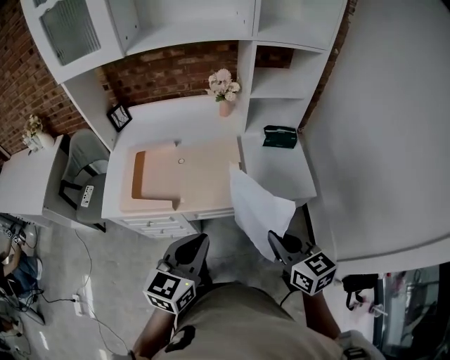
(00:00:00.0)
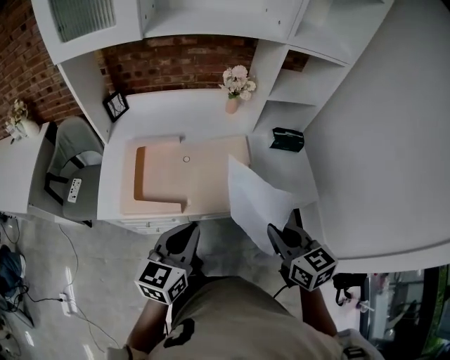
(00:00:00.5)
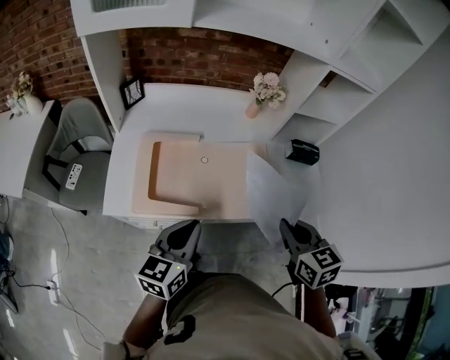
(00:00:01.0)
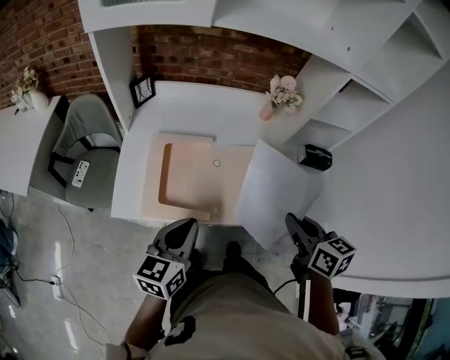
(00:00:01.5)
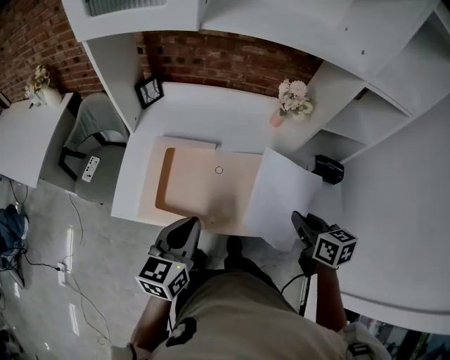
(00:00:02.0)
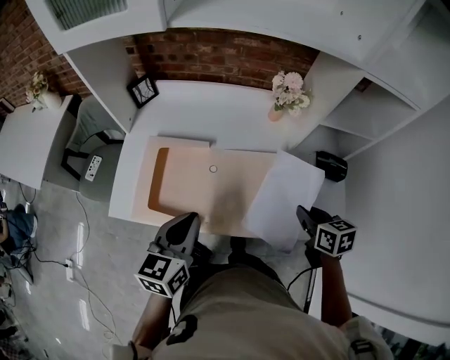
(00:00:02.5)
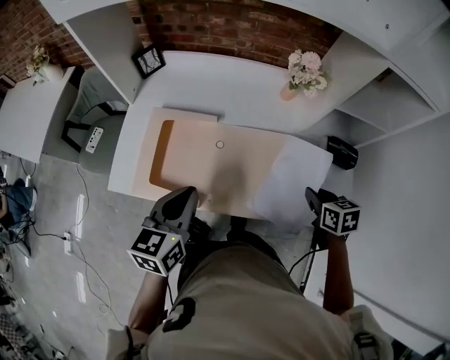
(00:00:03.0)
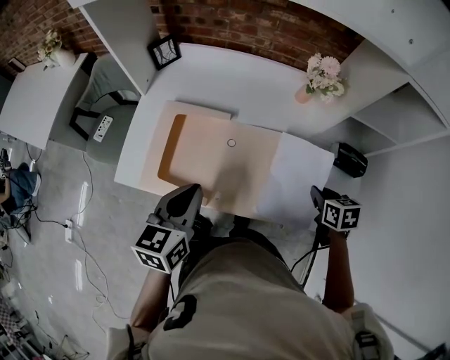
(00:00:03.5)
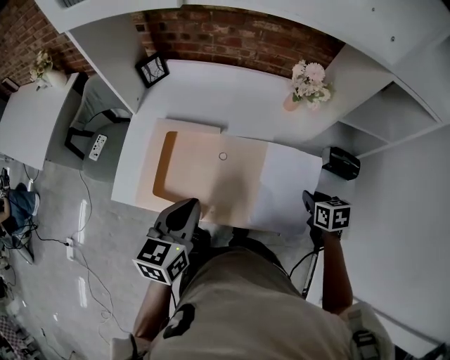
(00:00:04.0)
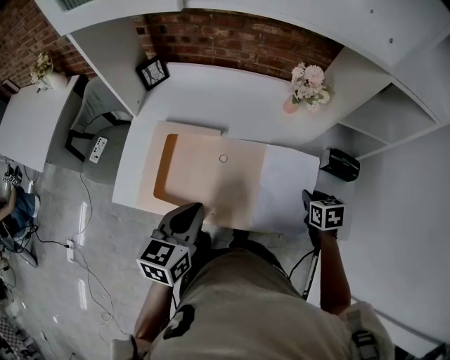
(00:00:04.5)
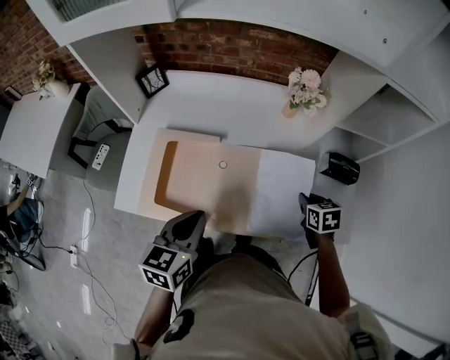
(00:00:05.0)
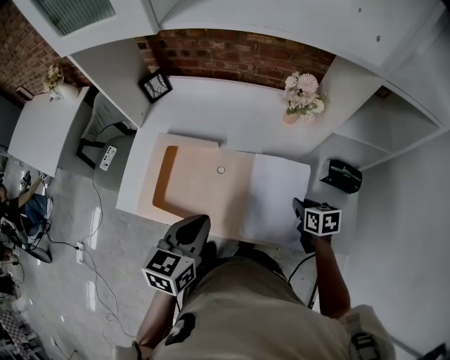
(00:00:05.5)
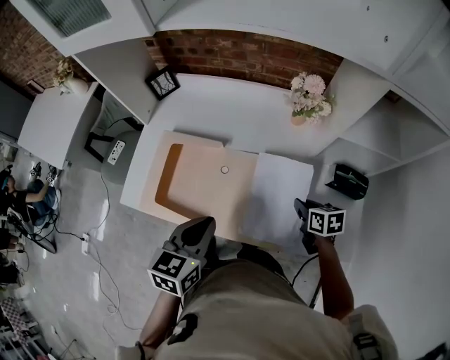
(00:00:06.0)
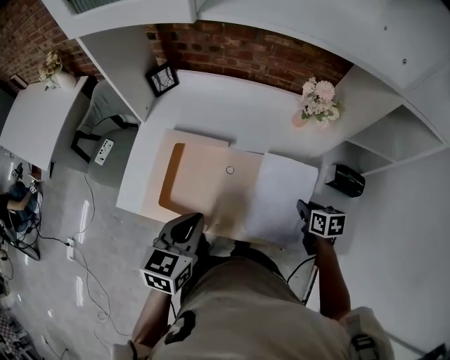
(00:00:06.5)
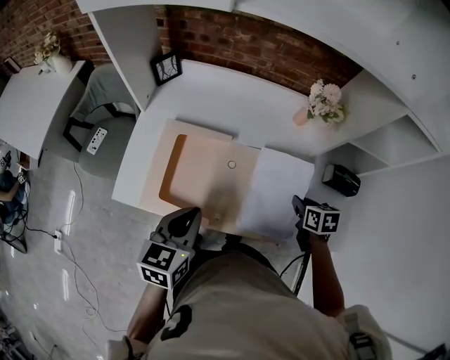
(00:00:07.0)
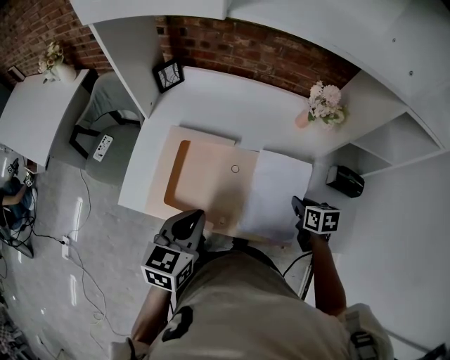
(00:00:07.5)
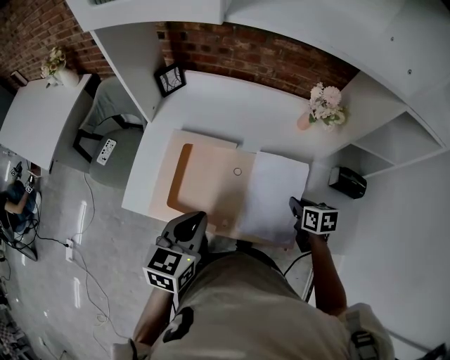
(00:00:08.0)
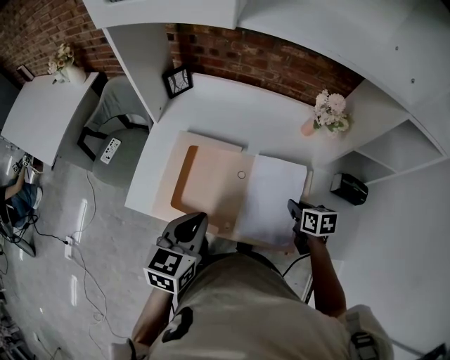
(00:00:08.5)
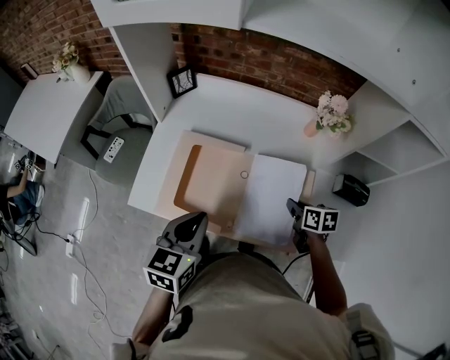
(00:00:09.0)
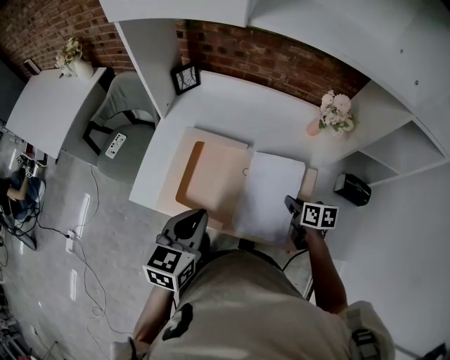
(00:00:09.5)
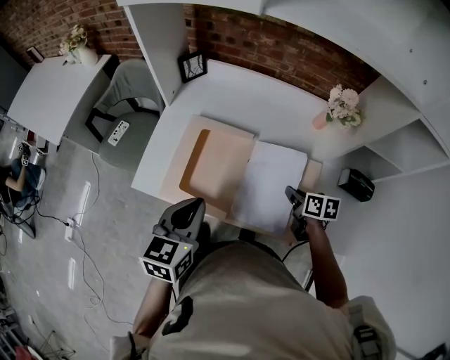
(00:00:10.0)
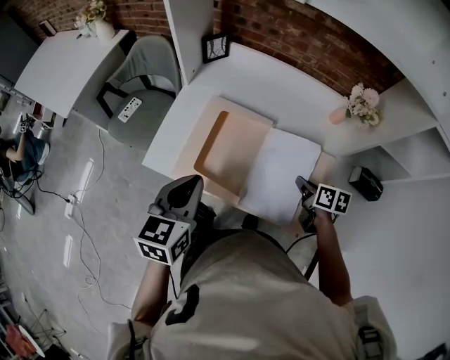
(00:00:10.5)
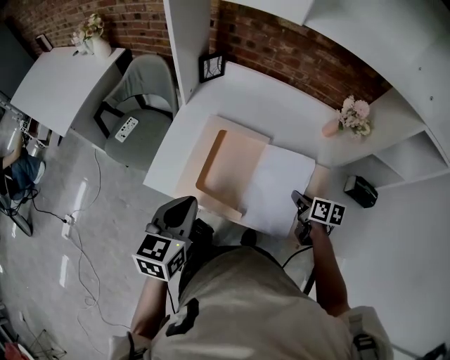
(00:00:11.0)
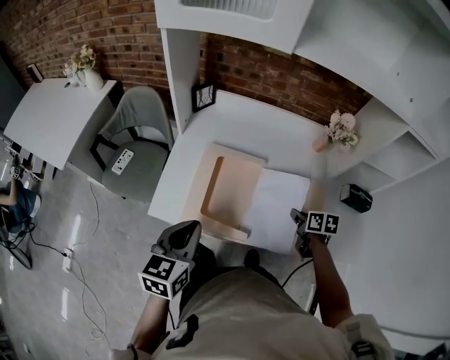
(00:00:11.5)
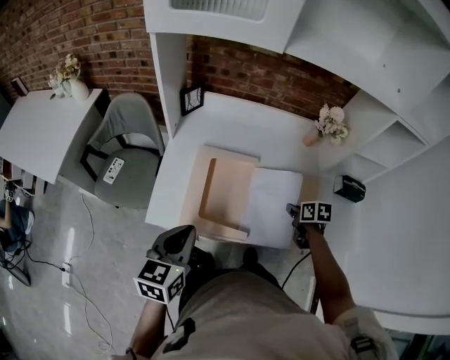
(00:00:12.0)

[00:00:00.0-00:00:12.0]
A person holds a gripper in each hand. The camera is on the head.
00:00:00.0 to 00:00:02.0: The right gripper goes approximately 20 cm forward. Meanwhile the left gripper shifts some 25 cm forward and to the left.
00:00:02.0 to 00:00:04.0: The right gripper is displaced downward, to the right and forward by approximately 15 cm, and changes its angle by roughly 20 degrees.
00:00:04.0 to 00:00:06.0: The left gripper shifts about 5 cm to the right. The right gripper ends up roughly 5 cm from where it was.
00:00:06.0 to 00:00:08.0: The two grippers go approximately 10 cm to the left.
00:00:08.0 to 00:00:10.0: The right gripper travels to the left by some 5 cm.
00:00:10.0 to 00:00:12.0: The left gripper is displaced to the left by approximately 10 cm.

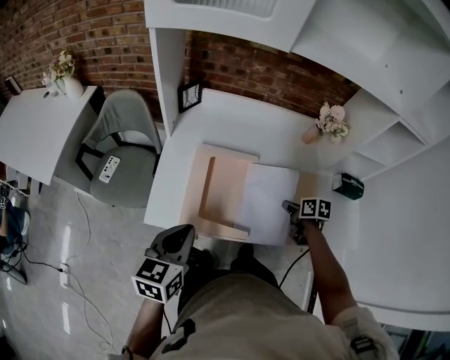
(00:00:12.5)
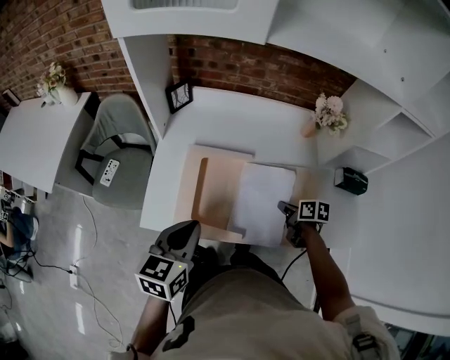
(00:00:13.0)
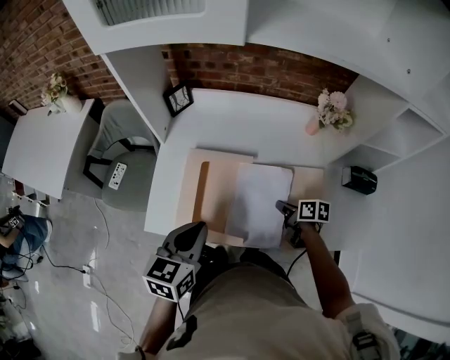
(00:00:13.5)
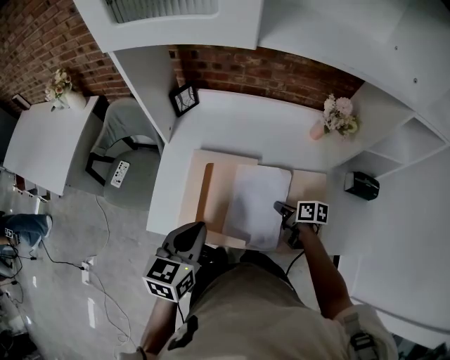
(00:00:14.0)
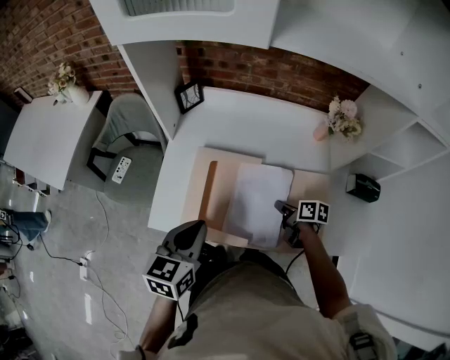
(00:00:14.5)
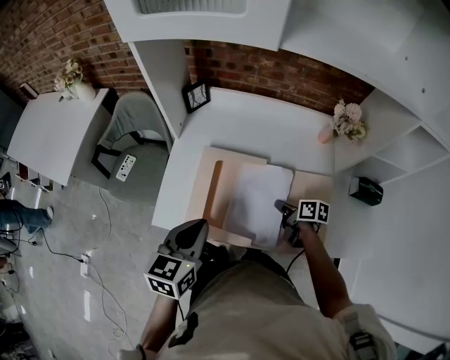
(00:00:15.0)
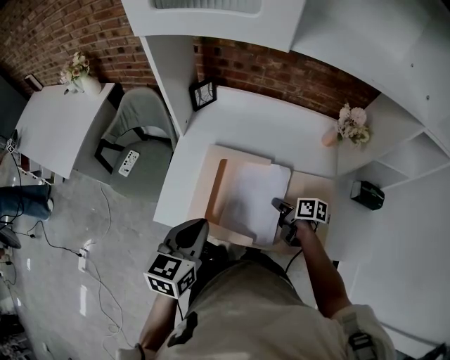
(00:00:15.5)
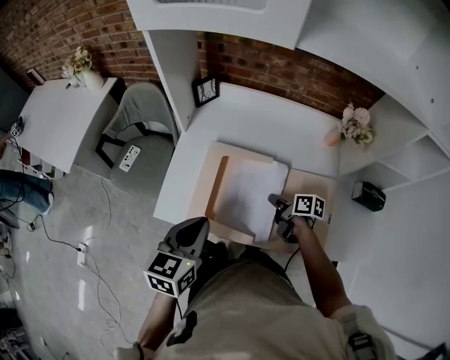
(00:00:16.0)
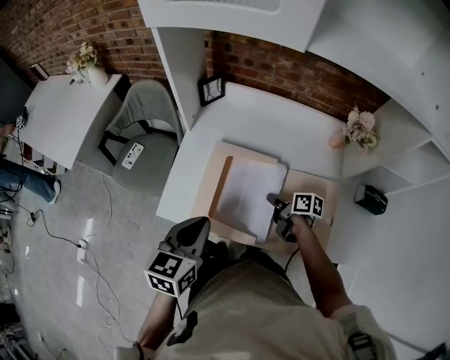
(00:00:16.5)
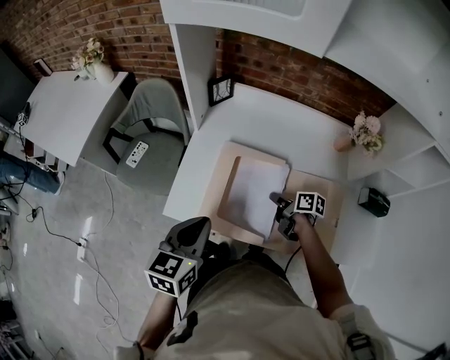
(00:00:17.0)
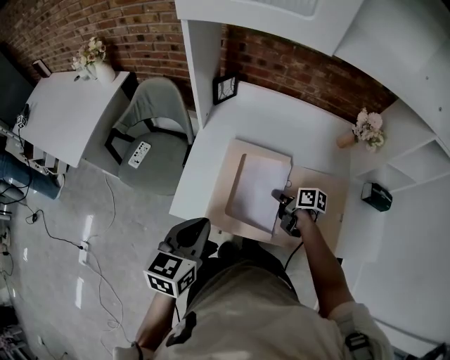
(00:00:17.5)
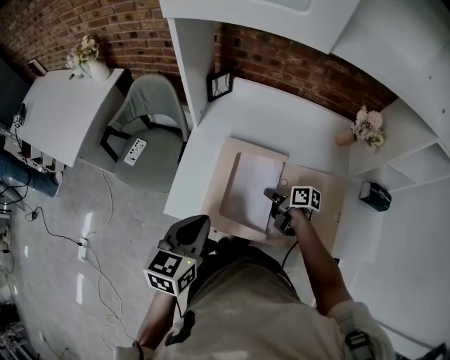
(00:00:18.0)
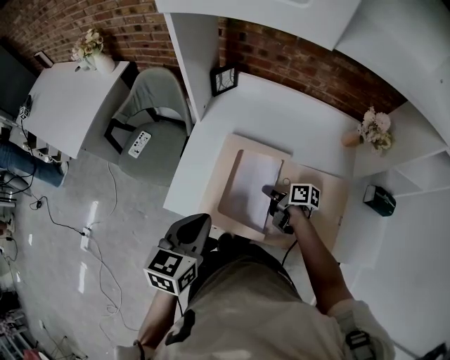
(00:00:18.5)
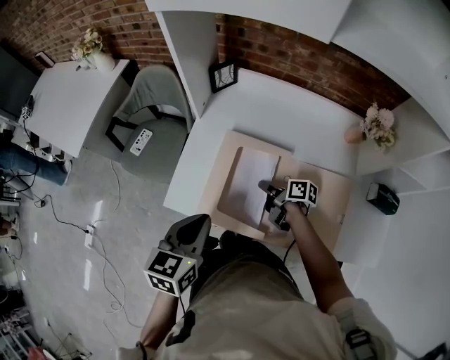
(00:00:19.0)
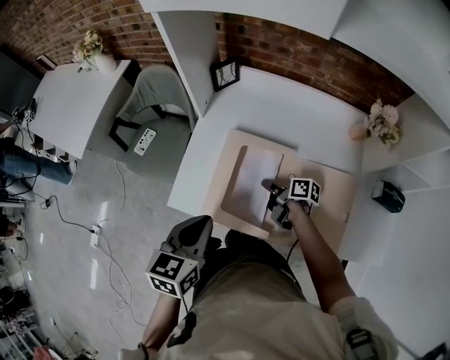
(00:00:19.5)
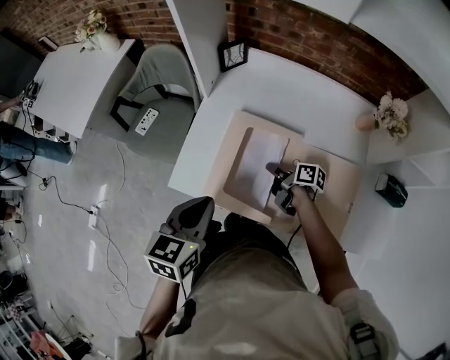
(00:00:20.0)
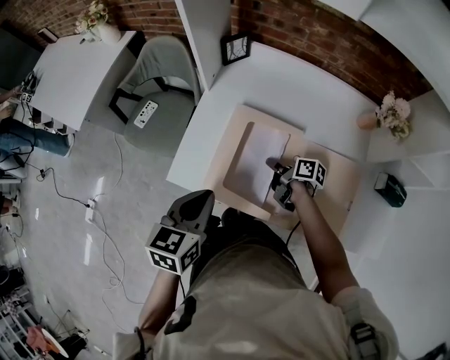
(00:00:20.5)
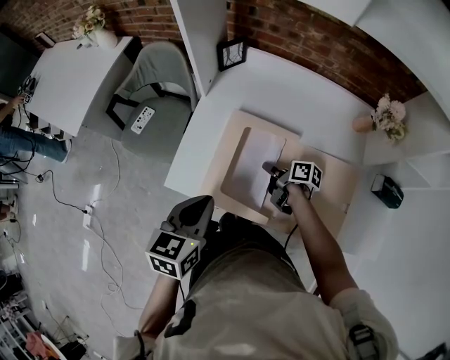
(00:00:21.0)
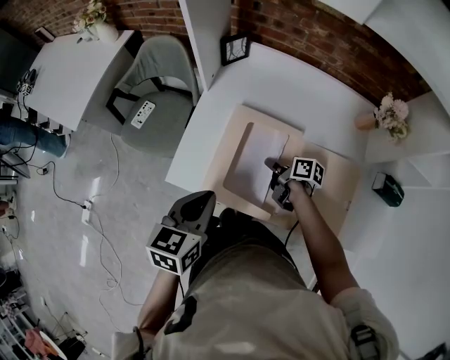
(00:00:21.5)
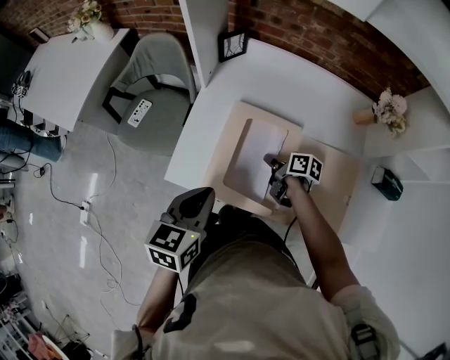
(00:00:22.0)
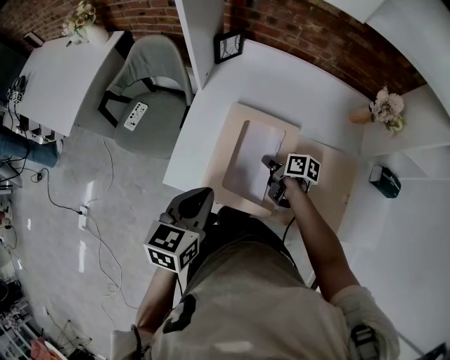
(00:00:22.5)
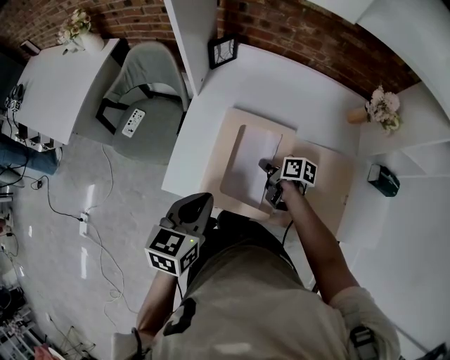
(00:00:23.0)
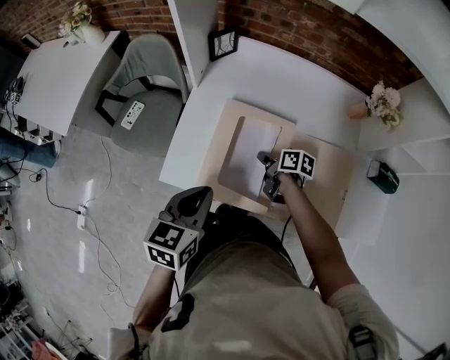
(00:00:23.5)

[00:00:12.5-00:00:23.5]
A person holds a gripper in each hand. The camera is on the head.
00:00:12.5 to 00:00:14.5: The left gripper moves to the right, roughly 5 cm; the right gripper shifts by some 5 cm.
00:00:14.5 to 00:00:16.0: The right gripper travels to the left by about 5 cm.
00:00:16.0 to 00:00:18.0: The right gripper heads to the left, covering some 5 cm.
00:00:18.0 to 00:00:23.5: The grippers stay close to where they were, moving slightly.

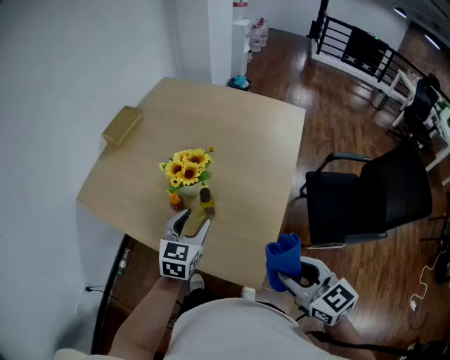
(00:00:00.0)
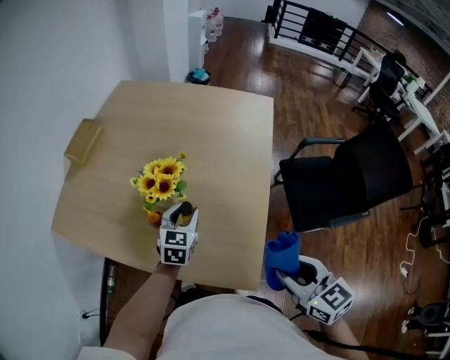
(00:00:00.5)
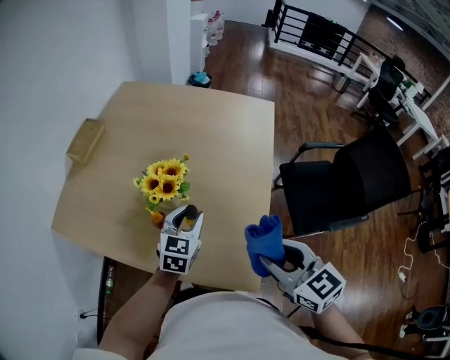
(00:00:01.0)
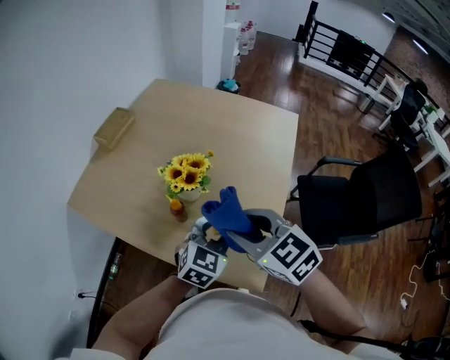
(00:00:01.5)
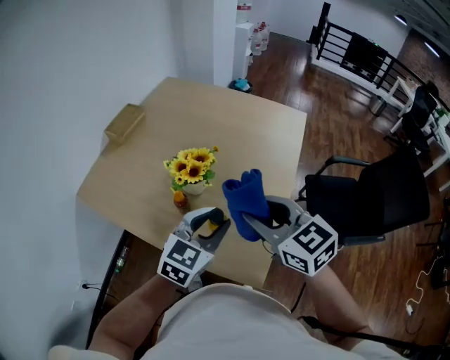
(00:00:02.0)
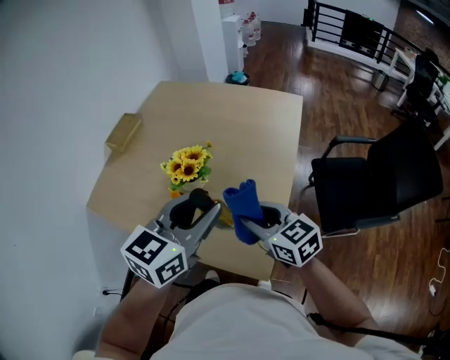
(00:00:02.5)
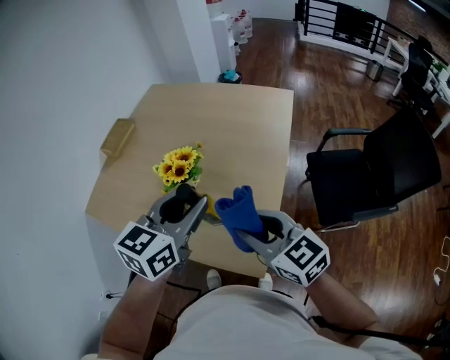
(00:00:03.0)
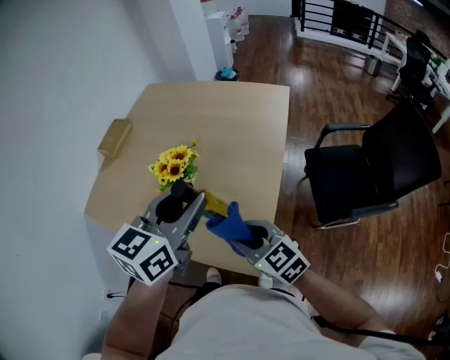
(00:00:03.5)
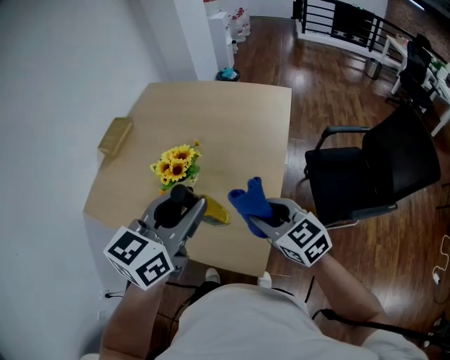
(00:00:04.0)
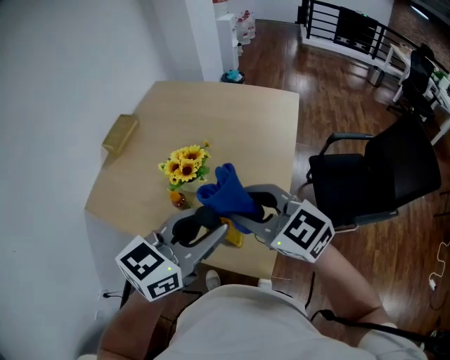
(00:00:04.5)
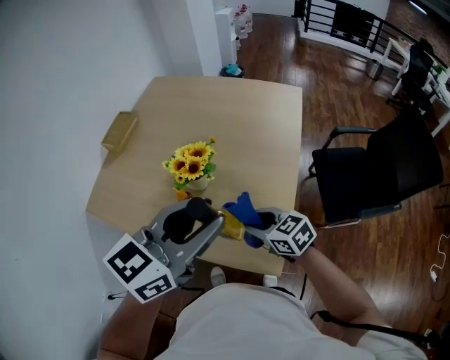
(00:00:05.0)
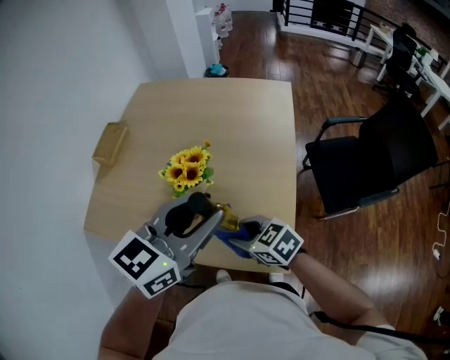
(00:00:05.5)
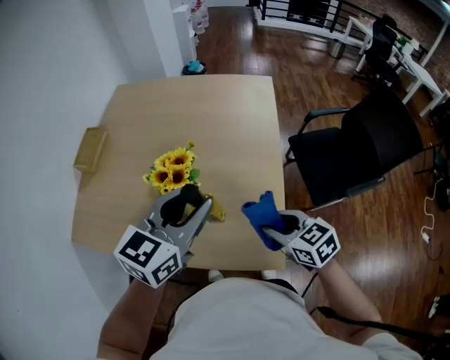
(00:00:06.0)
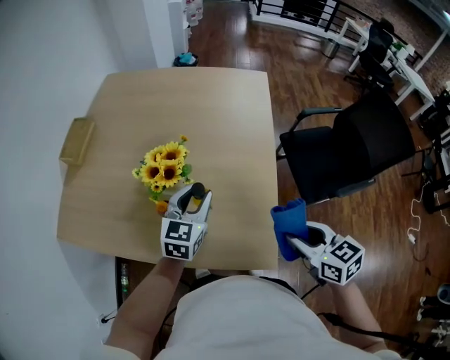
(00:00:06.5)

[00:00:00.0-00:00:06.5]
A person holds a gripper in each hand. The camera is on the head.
00:00:00.0 to 00:00:02.0: The left gripper goes some 10 cm upward, while the right gripper heads forward, to the left and upward, covering approximately 20 cm.
00:00:02.0 to 00:00:04.5: The left gripper moves upward and backward, approximately 10 cm, while the right gripper goes up and down, roughly 15 cm each way, reversing 3 times.
00:00:04.5 to 00:00:06.5: The right gripper is displaced downward, to the right and backward by some 20 cm, and changes its angle by some 50 degrees. Meanwhile the left gripper shifts some 25 cm downward and forward.
